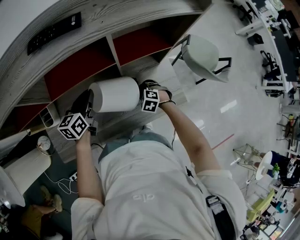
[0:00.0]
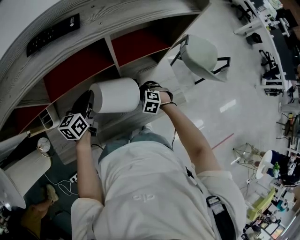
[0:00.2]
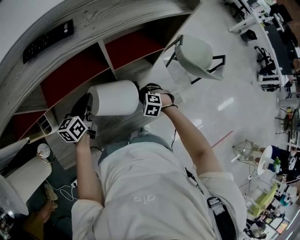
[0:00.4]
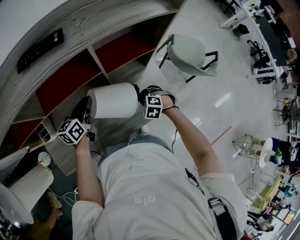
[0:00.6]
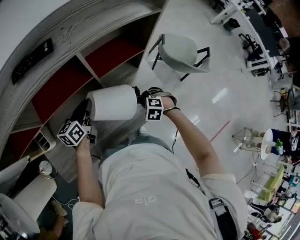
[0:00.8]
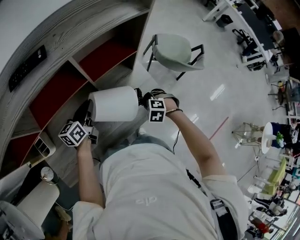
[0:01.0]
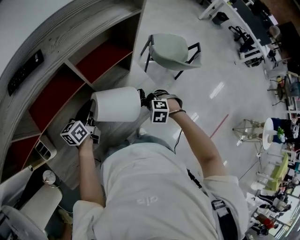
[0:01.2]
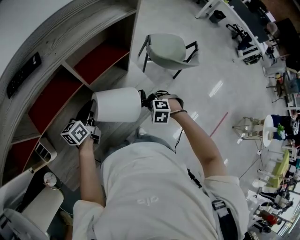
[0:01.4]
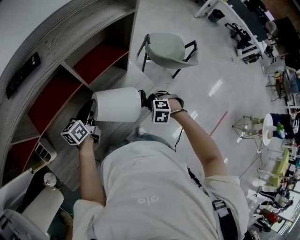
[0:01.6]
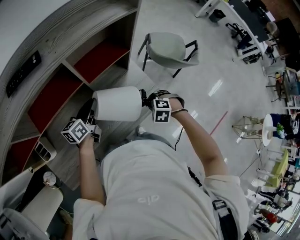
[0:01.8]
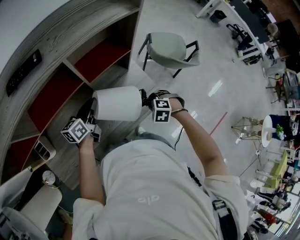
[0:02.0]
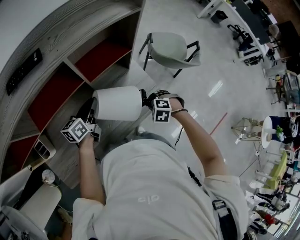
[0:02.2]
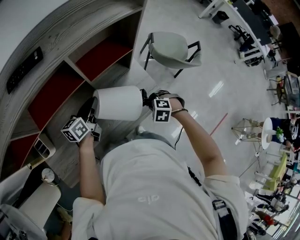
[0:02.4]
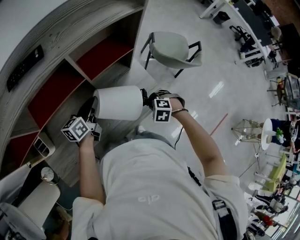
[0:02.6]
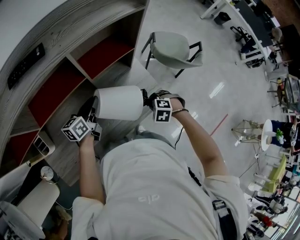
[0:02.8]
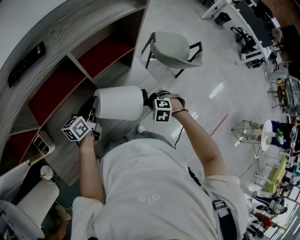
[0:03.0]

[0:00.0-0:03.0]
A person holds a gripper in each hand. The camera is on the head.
0:00.0 to 0:01.6: The left gripper shifts by some 15 cm, and changes its angle by about 20 degrees, while the right gripper shifts by roughly 20 cm.
0:01.6 to 0:03.0: The two grippers keep their place.

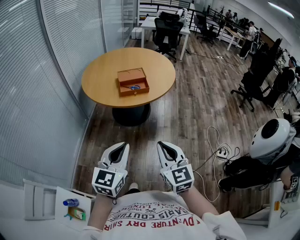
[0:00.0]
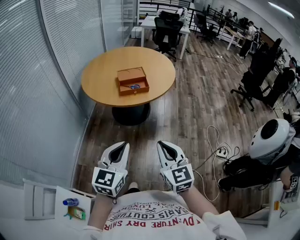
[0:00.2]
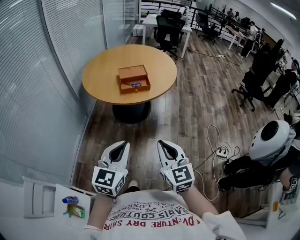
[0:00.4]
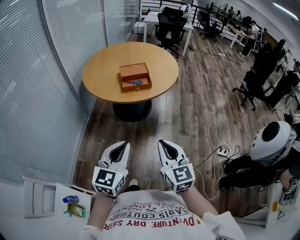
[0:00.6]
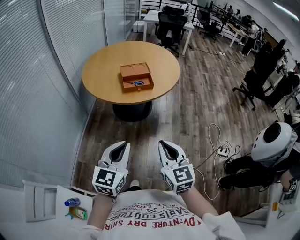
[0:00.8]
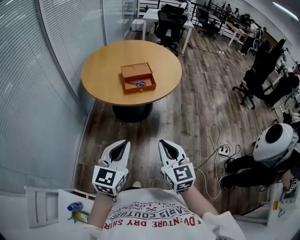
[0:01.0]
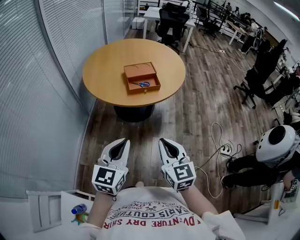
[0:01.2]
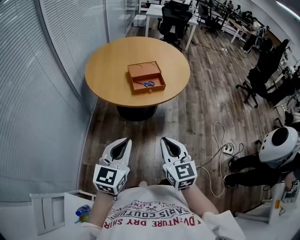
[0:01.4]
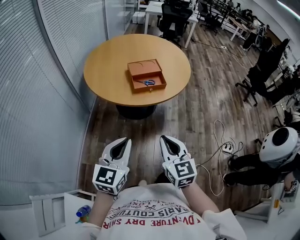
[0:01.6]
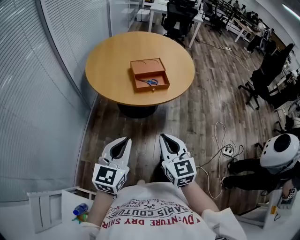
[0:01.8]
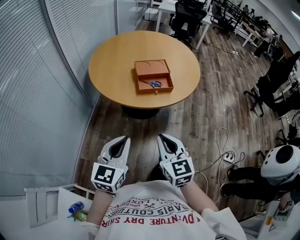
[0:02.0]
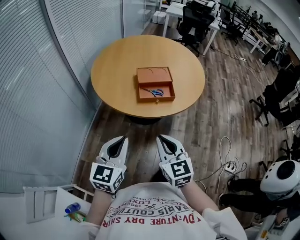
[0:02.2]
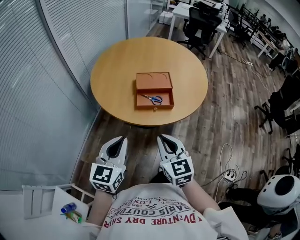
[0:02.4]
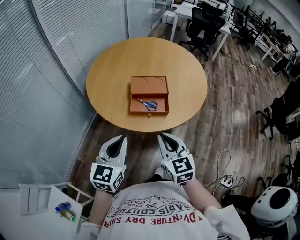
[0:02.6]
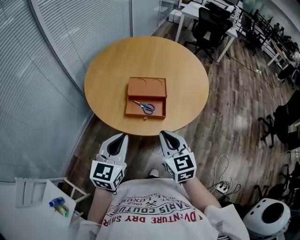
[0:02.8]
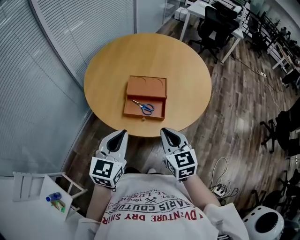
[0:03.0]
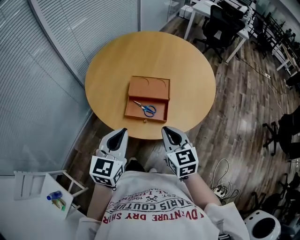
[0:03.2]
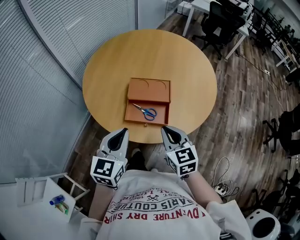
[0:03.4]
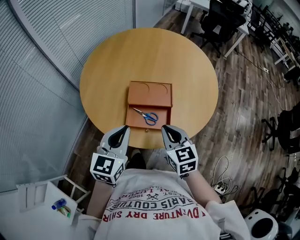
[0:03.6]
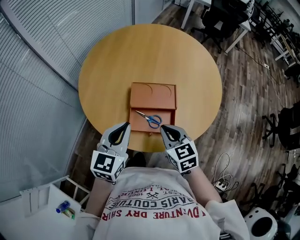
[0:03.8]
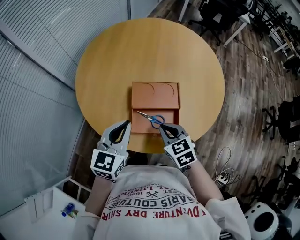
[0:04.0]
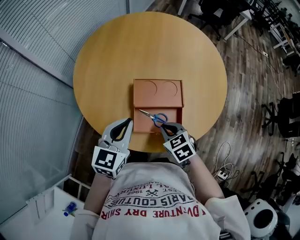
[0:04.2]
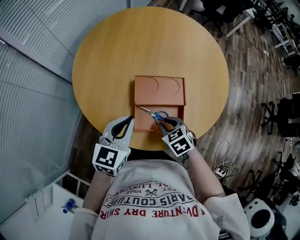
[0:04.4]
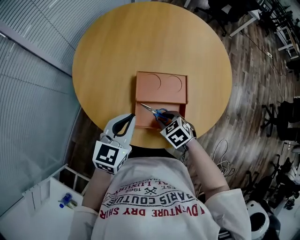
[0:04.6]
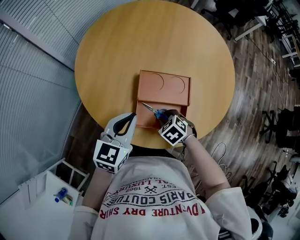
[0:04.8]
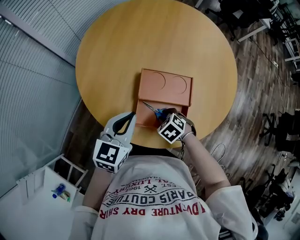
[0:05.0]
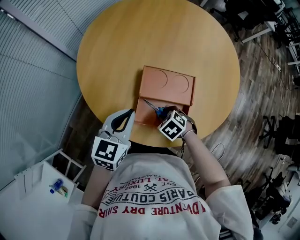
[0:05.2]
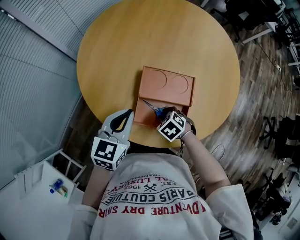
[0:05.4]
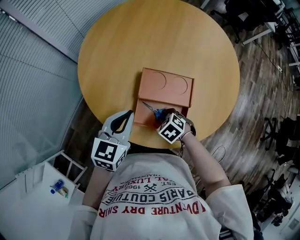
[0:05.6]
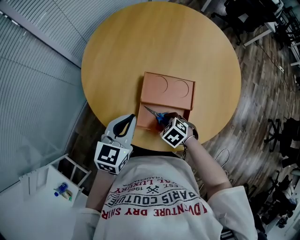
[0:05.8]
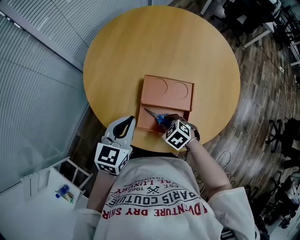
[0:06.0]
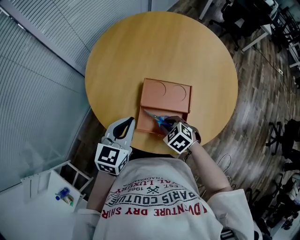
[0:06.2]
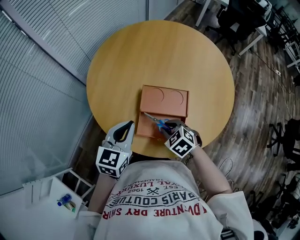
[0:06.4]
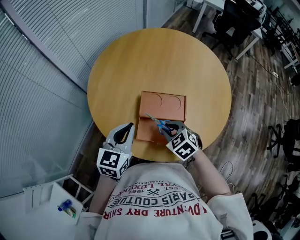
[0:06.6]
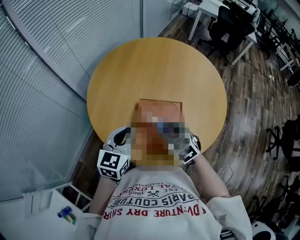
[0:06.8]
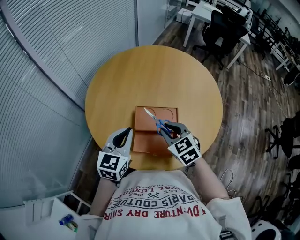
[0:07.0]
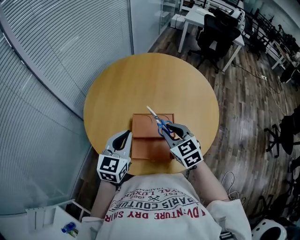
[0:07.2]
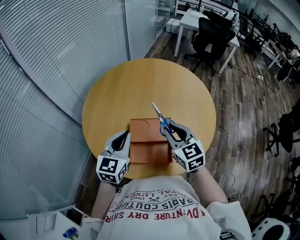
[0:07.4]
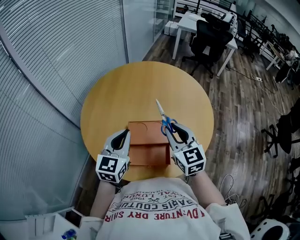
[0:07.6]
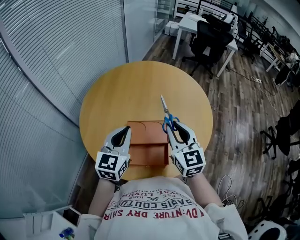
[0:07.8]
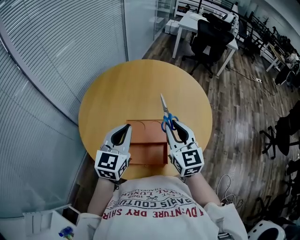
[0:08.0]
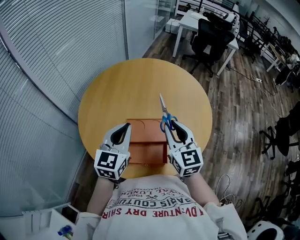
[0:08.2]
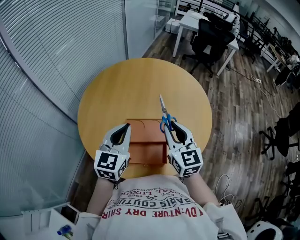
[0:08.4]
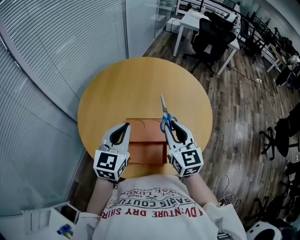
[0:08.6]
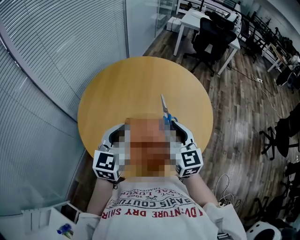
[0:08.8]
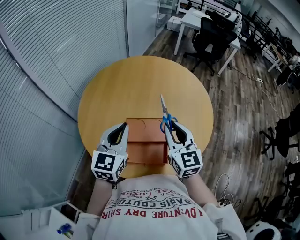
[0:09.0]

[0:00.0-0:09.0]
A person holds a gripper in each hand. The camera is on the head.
0:00.0 to 0:01.6: Both grippers travel together to the left and forward, some 20 cm.
0:01.6 to 0:03.0: The grippers both shift forward and to the right by about 35 cm. The right gripper turns by approximately 20 degrees, while the left gripper changes its angle by approximately 20 degrees.
0:03.0 to 0:04.4: The right gripper is displaced downward and forward by approximately 25 cm, angles its fingers downward, by roughly 40 degrees, and opens its fingers. The left gripper goes about 20 cm forward.
0:04.4 to 0:06.0: The right gripper rotates about 20 degrees.
0:06.0 to 0:07.6: The right gripper shifts about 30 cm upward, and tilts its fingers approximately 50 degrees upward. The left gripper goes about 15 cm upward and to the right.
0:07.6 to 0:09.0: The grippers make only small movements.

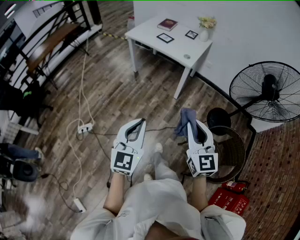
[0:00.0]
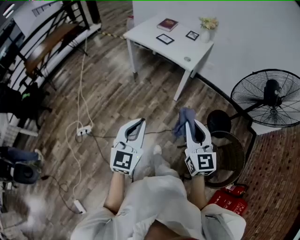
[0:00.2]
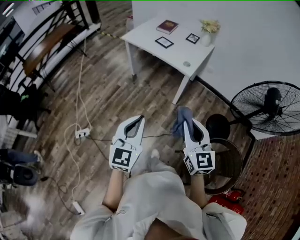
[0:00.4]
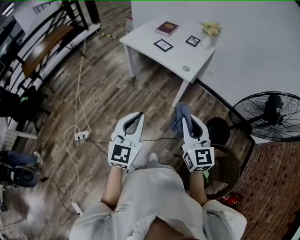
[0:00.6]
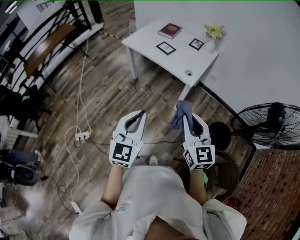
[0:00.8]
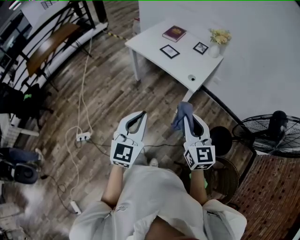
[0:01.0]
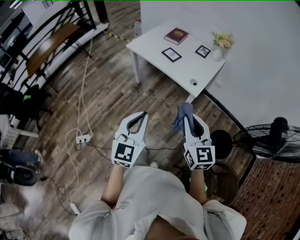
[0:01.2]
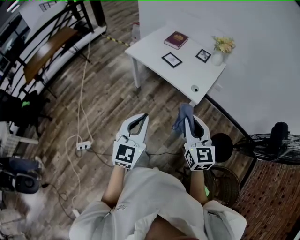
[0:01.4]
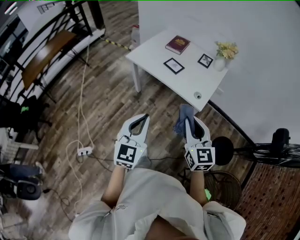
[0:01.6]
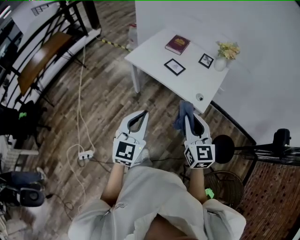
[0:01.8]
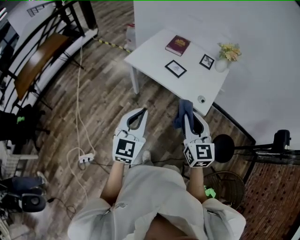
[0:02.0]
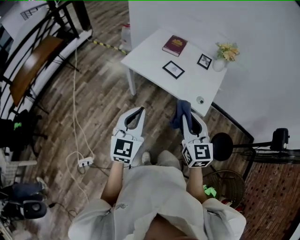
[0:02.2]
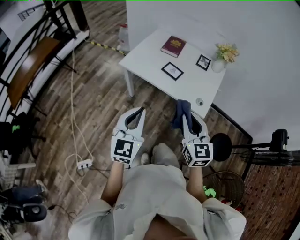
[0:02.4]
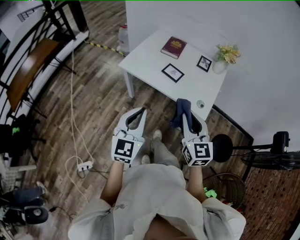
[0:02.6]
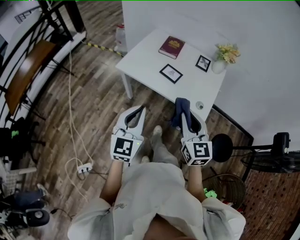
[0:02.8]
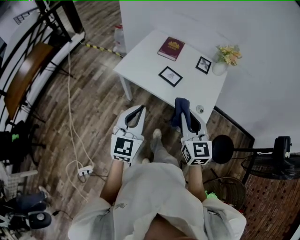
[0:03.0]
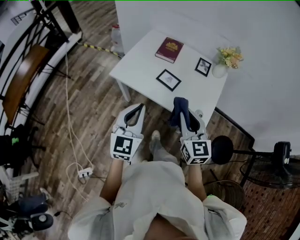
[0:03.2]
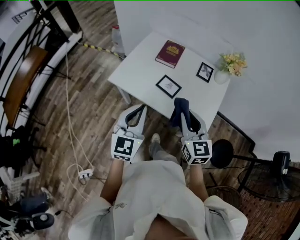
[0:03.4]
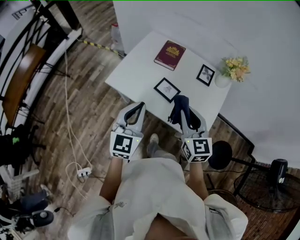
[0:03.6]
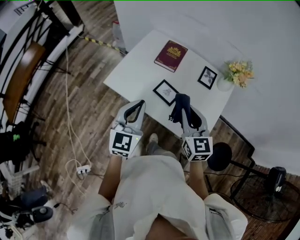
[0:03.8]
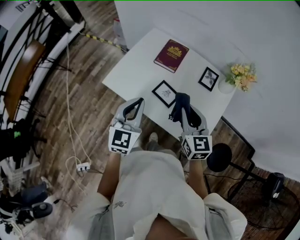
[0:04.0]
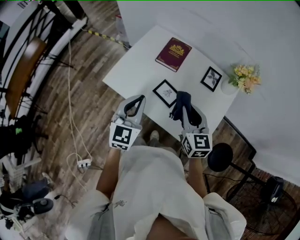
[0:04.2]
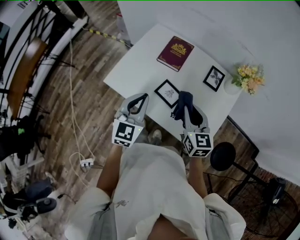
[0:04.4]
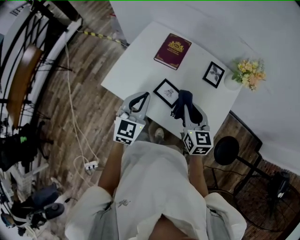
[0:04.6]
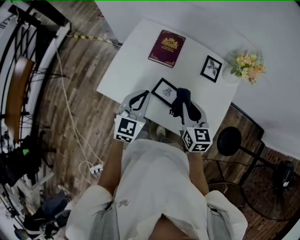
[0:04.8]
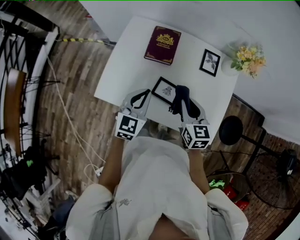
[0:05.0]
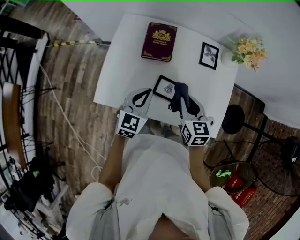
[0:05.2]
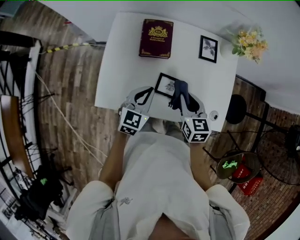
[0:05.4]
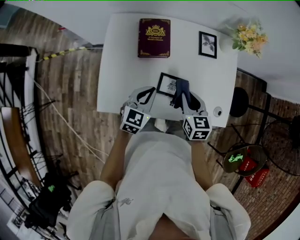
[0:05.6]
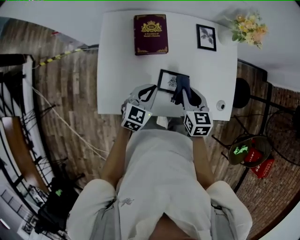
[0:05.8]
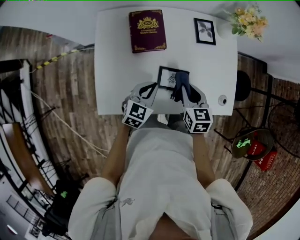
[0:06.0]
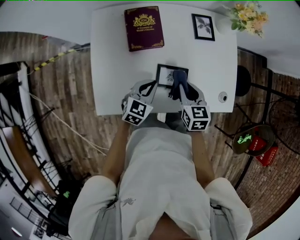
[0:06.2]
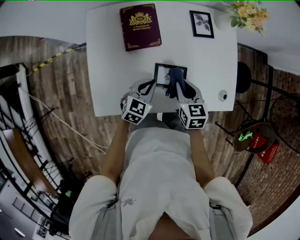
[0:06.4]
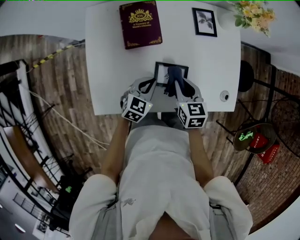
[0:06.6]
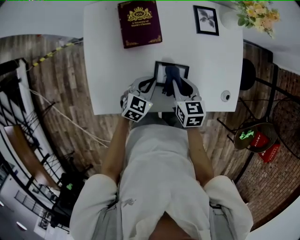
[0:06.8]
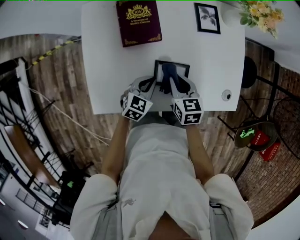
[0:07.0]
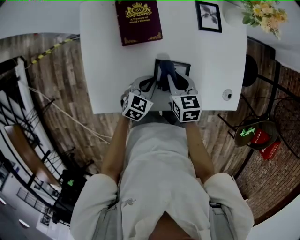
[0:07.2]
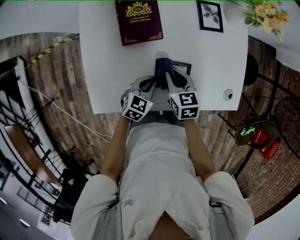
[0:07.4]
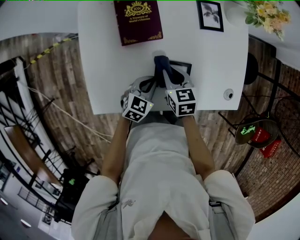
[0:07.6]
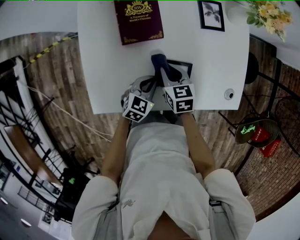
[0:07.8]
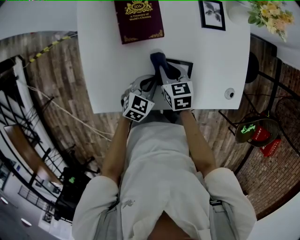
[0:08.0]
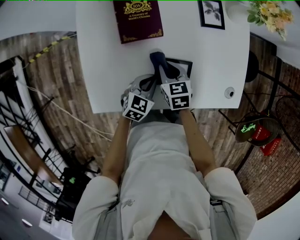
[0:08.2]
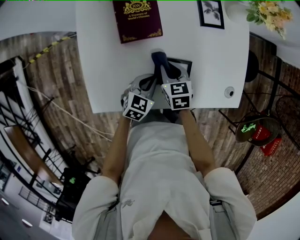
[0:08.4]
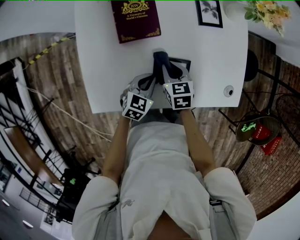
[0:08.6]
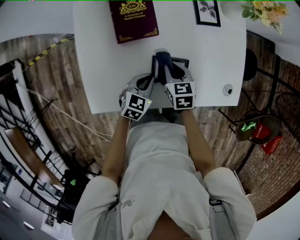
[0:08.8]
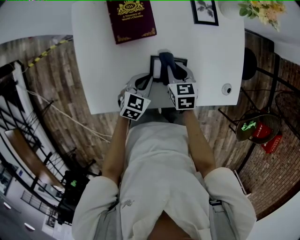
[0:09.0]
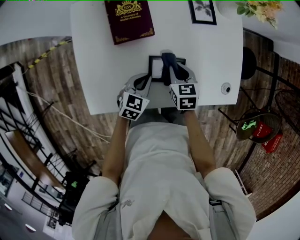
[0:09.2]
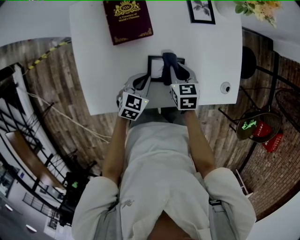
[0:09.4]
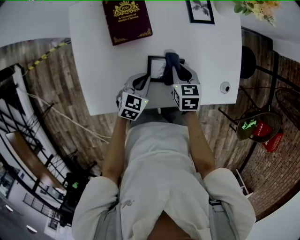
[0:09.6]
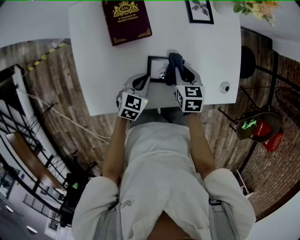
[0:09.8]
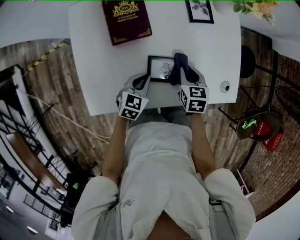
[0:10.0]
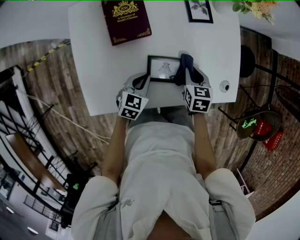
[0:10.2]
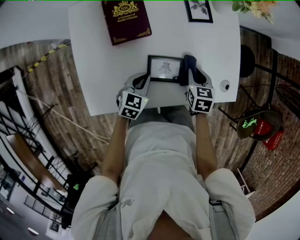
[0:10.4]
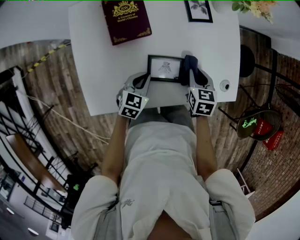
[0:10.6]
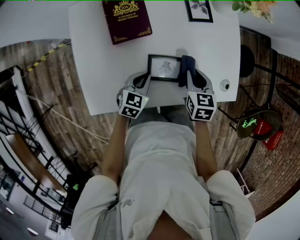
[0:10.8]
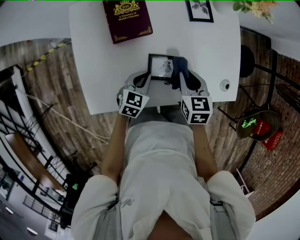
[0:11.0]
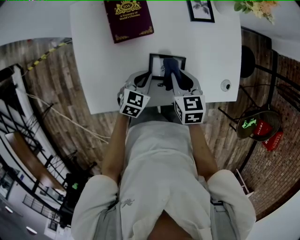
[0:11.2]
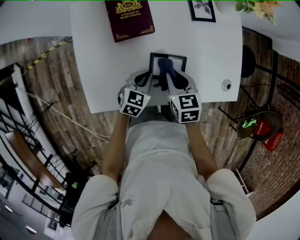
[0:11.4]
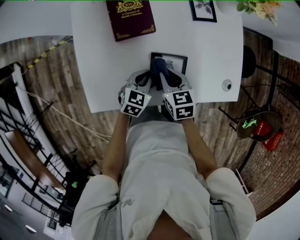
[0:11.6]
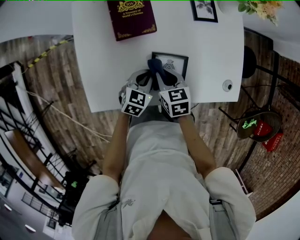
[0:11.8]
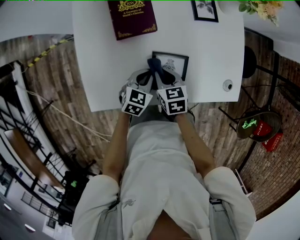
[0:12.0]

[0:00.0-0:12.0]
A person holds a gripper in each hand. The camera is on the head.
0:00.0 to 0:01.6: The two grippers go roughly 40 cm forward.
0:01.6 to 0:03.0: Both grippers travel together forward, some 20 cm.
0:03.0 to 0:04.4: The grippers both shift forward by approximately 30 cm.
0:04.4 to 0:06.0: The grippers both shift downward by about 15 cm. The left gripper rotates roughly 50 degrees. Meanwhile the right gripper turns by some 40 degrees.
0:06.0 to 0:07.6: The right gripper heads downward and to the left, covering roughly 10 cm, while the left gripper travels downward by roughly 10 cm.
0:07.6 to 0:09.0: The grippers stay close to where they were, moving slightly.
0:09.0 to 0:10.4: The right gripper shifts about 10 cm to the right.
0:10.4 to 0:12.0: The right gripper heads to the left, covering approximately 15 cm.
